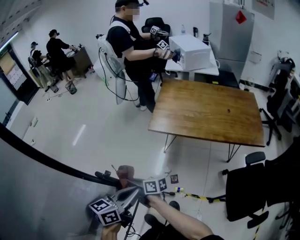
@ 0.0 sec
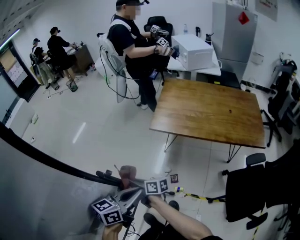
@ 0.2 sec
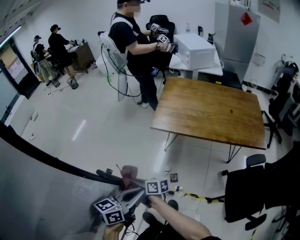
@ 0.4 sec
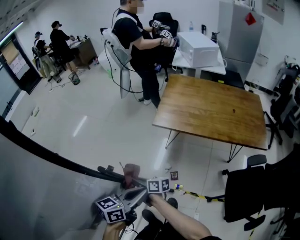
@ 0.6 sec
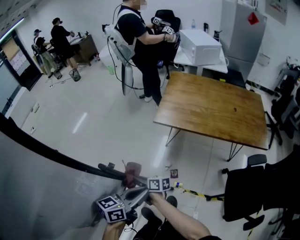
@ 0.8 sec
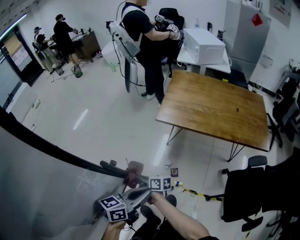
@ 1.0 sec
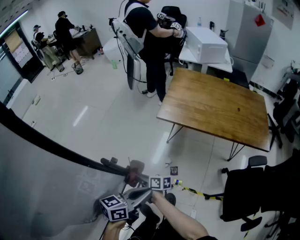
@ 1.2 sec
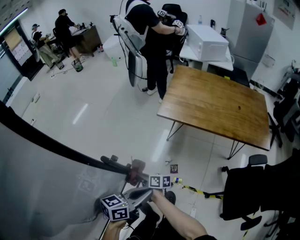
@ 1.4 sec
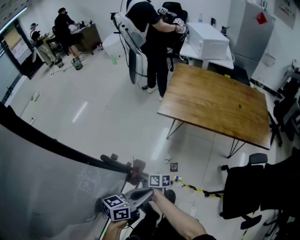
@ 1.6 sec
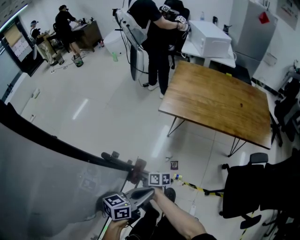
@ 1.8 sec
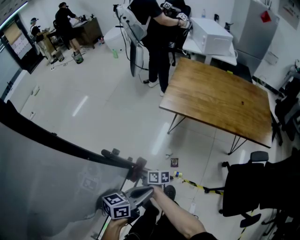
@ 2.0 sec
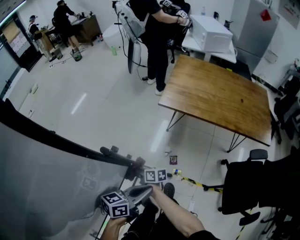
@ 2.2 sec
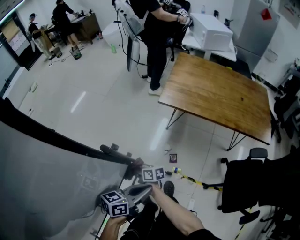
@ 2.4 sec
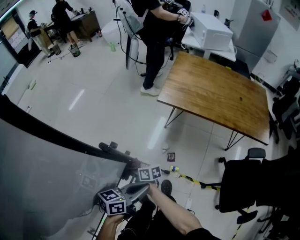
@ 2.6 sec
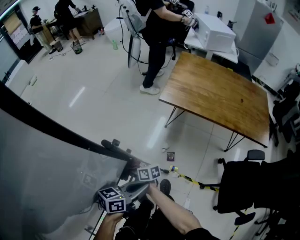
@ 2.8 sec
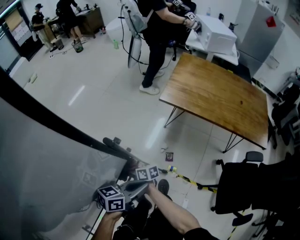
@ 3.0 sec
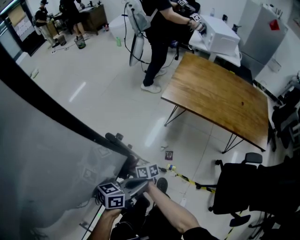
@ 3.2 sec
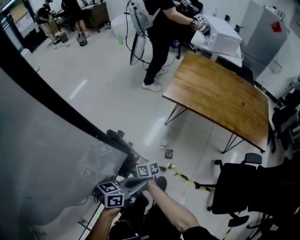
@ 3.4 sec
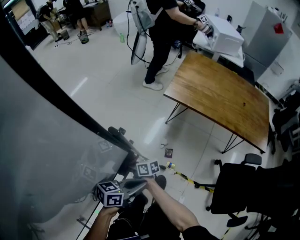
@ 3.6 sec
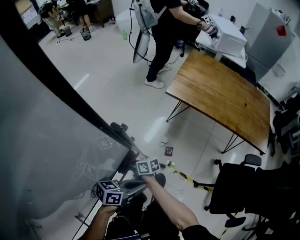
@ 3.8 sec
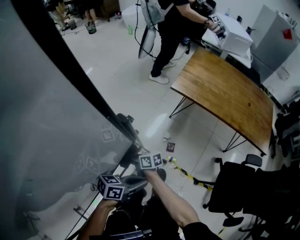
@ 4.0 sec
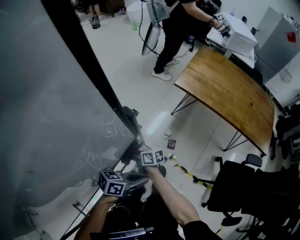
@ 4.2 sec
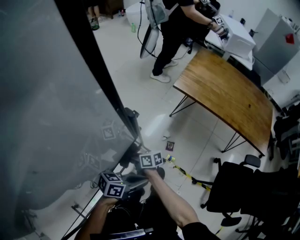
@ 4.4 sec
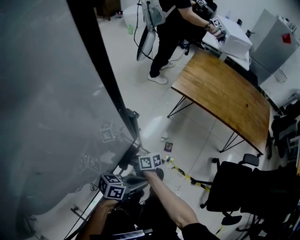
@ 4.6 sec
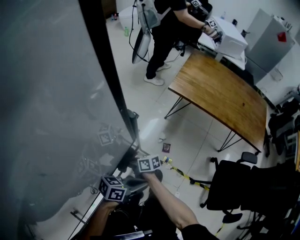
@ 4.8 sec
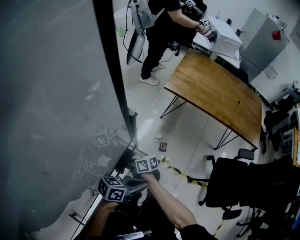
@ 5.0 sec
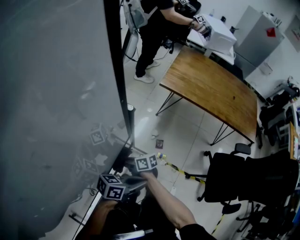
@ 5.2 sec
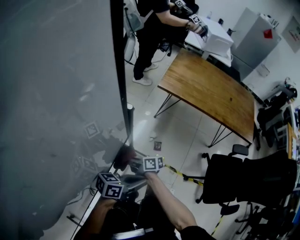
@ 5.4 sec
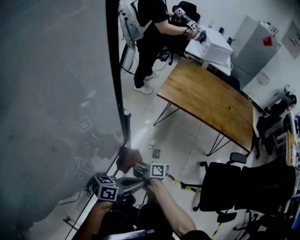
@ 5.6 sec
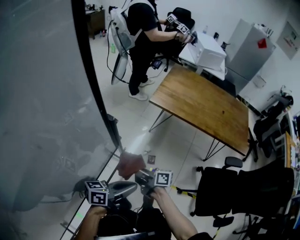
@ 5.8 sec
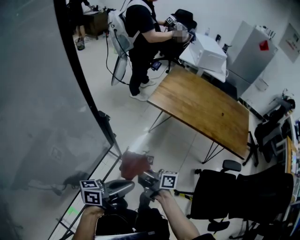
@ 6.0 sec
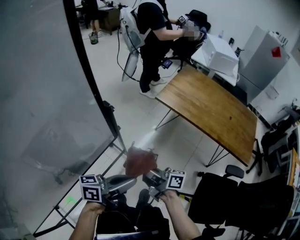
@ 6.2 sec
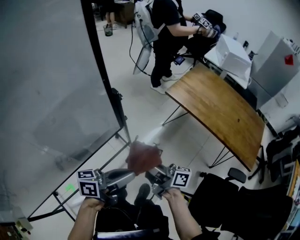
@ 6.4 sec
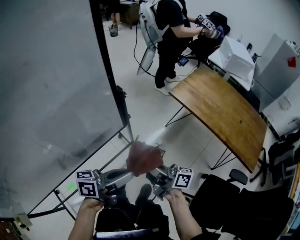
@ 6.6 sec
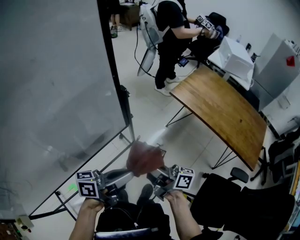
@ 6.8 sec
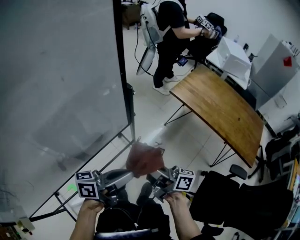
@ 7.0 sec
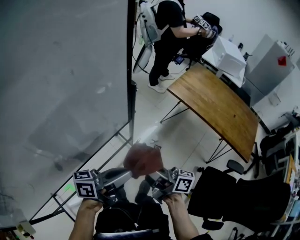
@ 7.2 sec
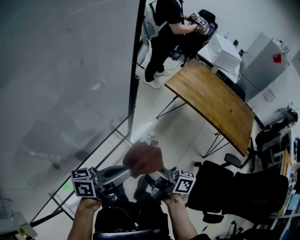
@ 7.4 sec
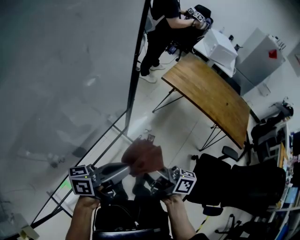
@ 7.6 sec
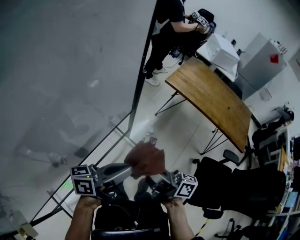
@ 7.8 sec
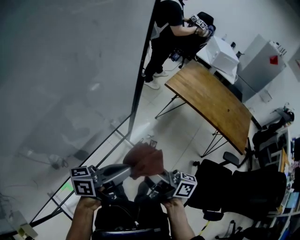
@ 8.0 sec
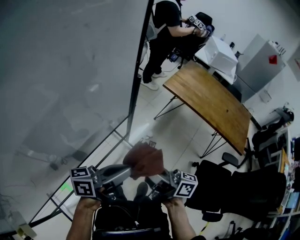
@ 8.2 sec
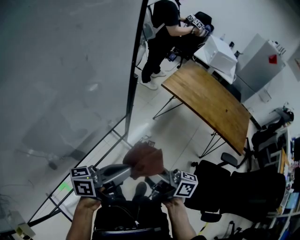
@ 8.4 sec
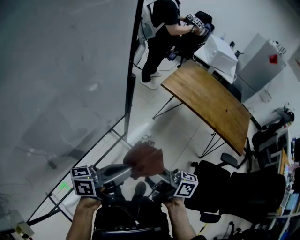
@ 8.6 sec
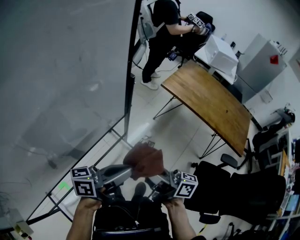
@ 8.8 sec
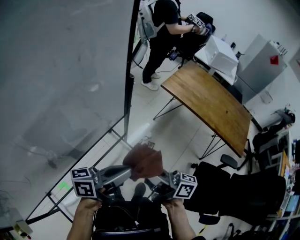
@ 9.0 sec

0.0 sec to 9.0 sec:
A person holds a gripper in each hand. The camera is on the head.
0.0 sec to 1.6 sec: The left gripper goes some 10 cm downward, while the right gripper moves downward, some 15 cm.
1.6 sec to 3.0 sec: The right gripper changes place by roughly 10 cm.
3.0 sec to 4.4 sec: The left gripper changes place by some 10 cm. The right gripper ends up approximately 5 cm from where it was.
4.4 sec to 6.0 sec: The right gripper ends up approximately 30 cm from where it was, and swivels roughly 30 degrees, while the left gripper shifts roughly 10 cm upward, and turns by about 20 degrees.
6.0 sec to 7.6 sec: The right gripper is displaced backward and upward by about 20 cm. Meanwhile the left gripper goes some 15 cm backward, to the left and upward.
7.6 sec to 9.0 sec: The grippers make only small movements.

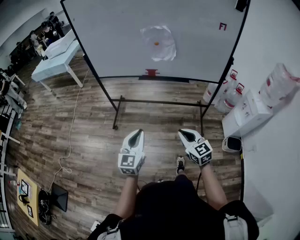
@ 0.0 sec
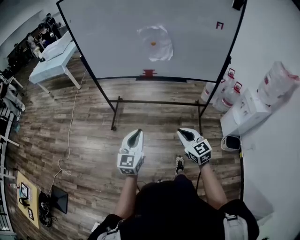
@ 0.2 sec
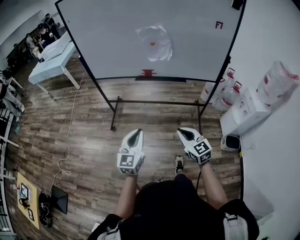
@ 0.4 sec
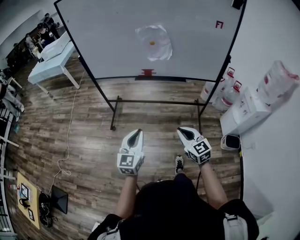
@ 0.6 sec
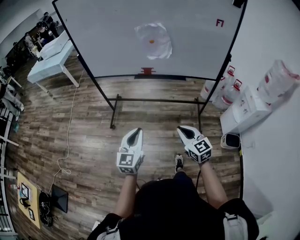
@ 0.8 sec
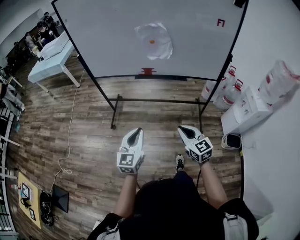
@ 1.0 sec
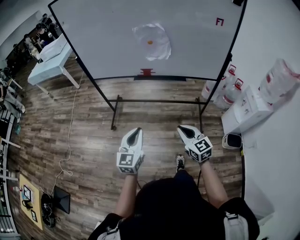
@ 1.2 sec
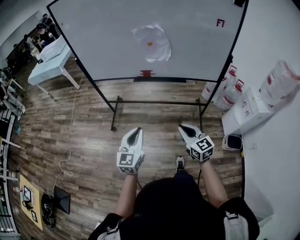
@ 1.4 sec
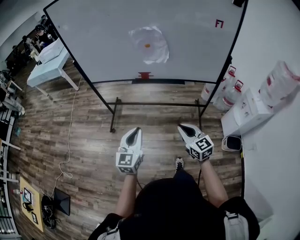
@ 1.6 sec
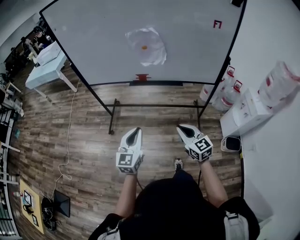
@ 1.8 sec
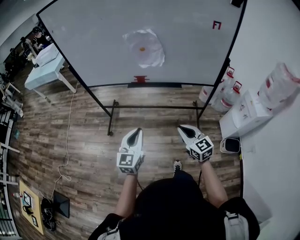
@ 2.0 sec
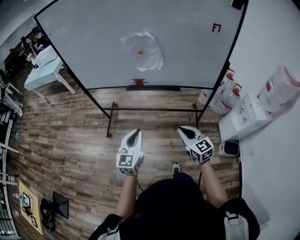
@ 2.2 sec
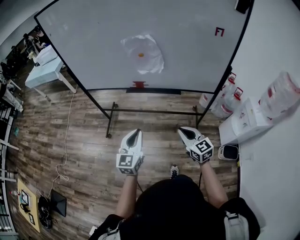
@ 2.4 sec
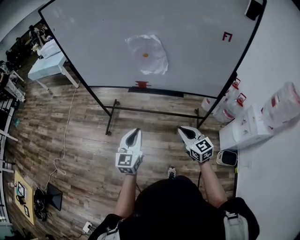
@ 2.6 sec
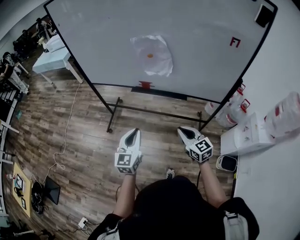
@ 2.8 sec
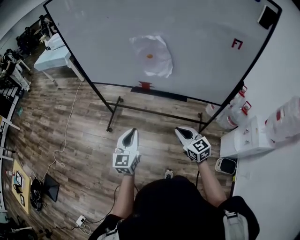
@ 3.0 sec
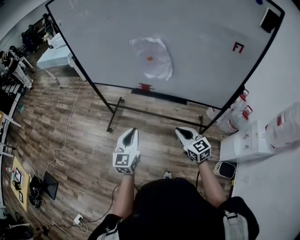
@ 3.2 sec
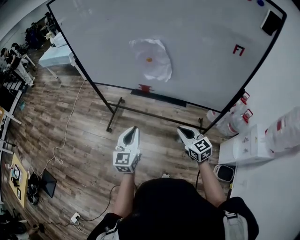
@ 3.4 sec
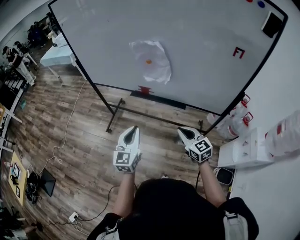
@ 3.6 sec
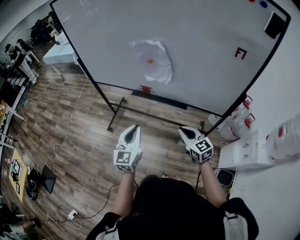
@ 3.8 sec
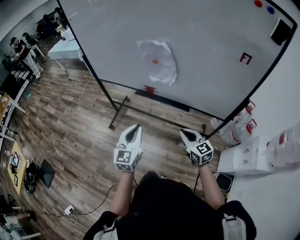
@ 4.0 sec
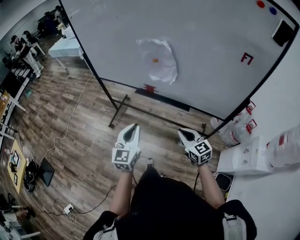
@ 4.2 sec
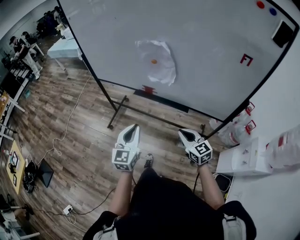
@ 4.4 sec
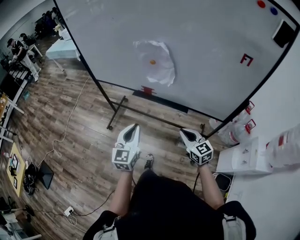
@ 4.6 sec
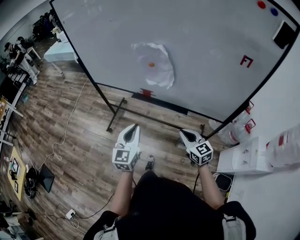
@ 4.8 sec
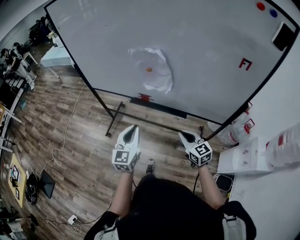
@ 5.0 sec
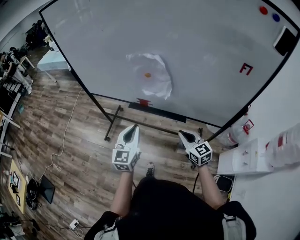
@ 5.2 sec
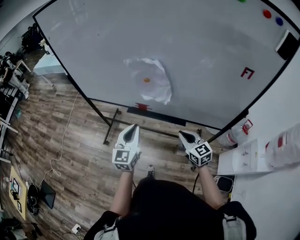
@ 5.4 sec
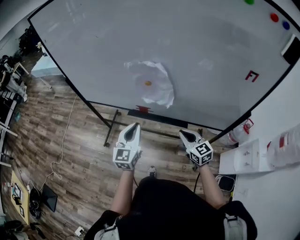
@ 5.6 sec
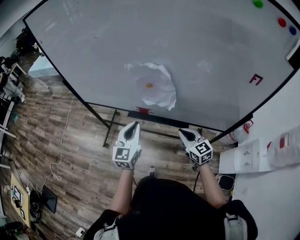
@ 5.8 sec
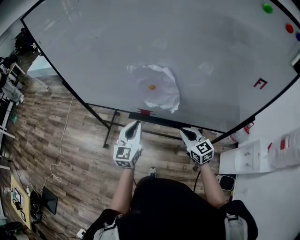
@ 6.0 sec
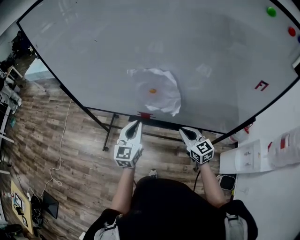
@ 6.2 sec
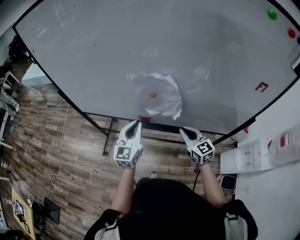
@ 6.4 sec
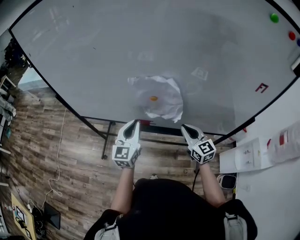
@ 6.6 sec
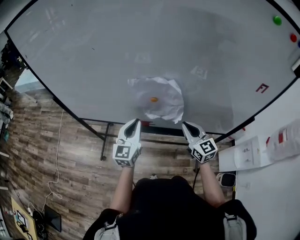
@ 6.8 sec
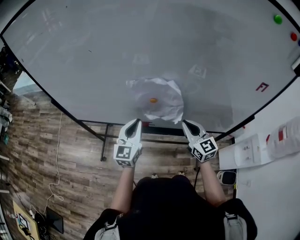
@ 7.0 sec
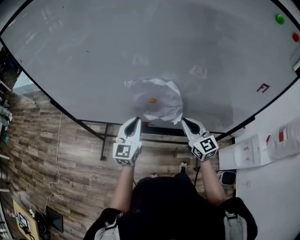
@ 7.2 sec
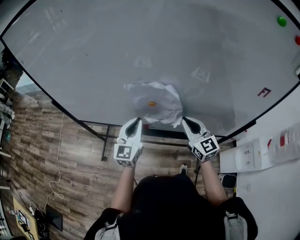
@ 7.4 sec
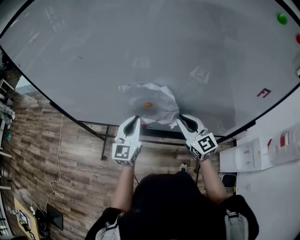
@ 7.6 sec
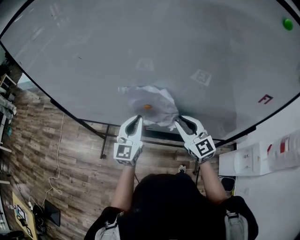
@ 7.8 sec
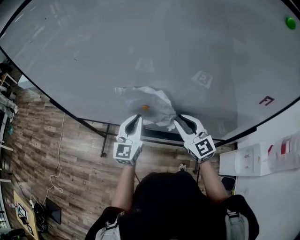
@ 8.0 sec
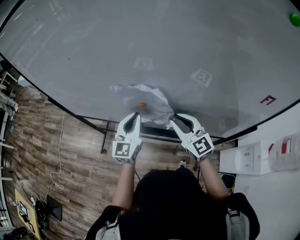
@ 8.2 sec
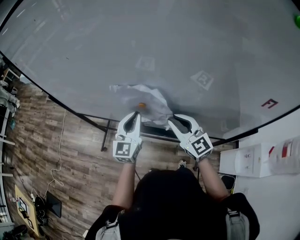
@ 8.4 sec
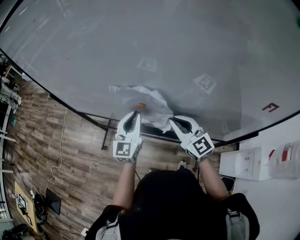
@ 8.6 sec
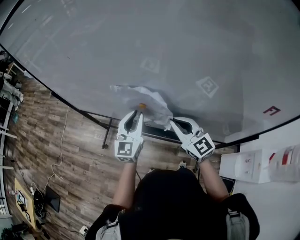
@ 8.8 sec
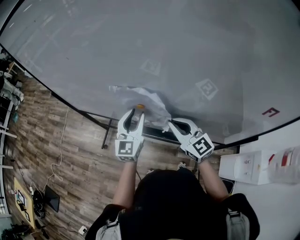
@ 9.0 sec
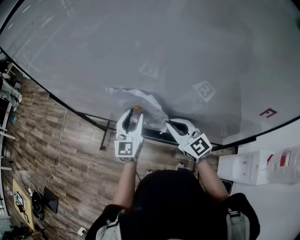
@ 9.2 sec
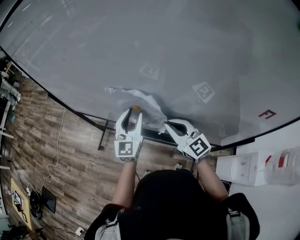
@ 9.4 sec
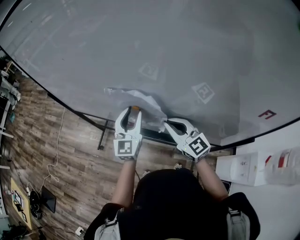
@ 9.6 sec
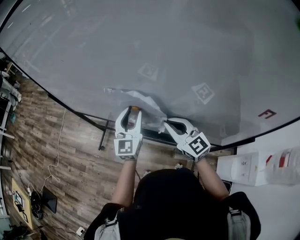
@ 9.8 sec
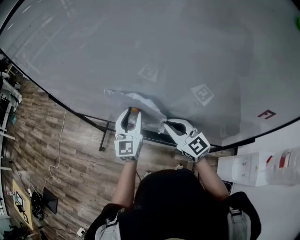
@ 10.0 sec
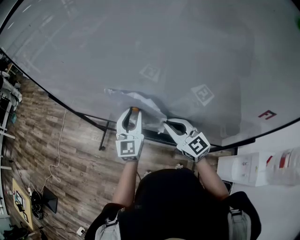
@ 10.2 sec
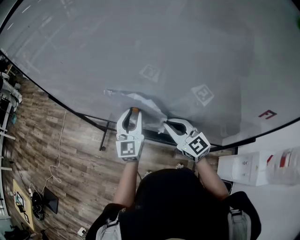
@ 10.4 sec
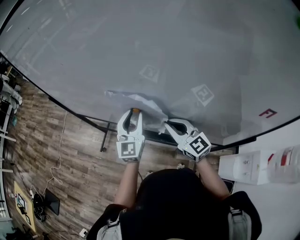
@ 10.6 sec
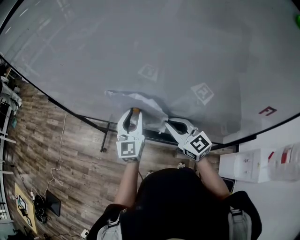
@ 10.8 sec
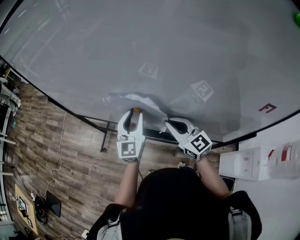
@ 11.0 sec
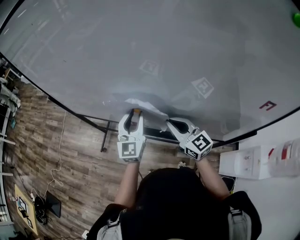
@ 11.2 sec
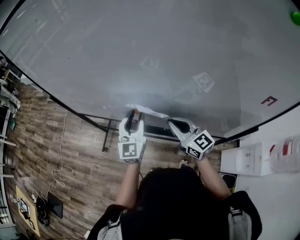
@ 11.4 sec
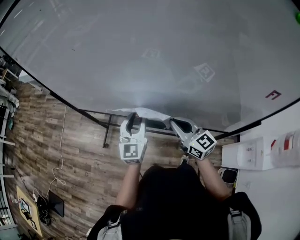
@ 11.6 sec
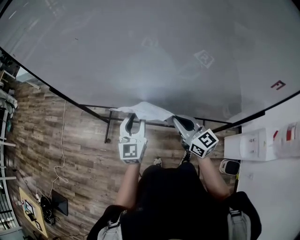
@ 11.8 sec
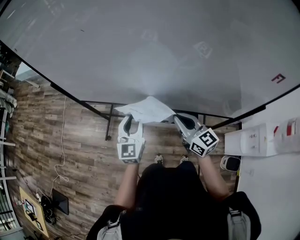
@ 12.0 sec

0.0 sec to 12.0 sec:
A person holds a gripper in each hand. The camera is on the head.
0.0 sec to 1.6 sec: The right gripper heads forward and to the right, covering some 10 cm; the left gripper travels forward by some 10 cm.
1.6 sec to 3.0 sec: The grippers both shift forward and to the right by roughly 15 cm.
3.0 sec to 4.4 sec: Both grippers travel together to the right, some 5 cm.
4.4 sec to 6.0 sec: The grippers both shift forward by about 20 cm.
6.0 sec to 7.6 sec: The right gripper moves forward and upward, some 15 cm, while the left gripper shifts roughly 10 cm forward.
7.6 sec to 9.0 sec: The left gripper ends up roughly 5 cm from where it was, and opens its fingers.
9.0 sec to 10.4 sec: The grippers stay close to where they were, moving slightly.
10.4 sec to 12.0 sec: The left gripper travels to the left, backward and downward by approximately 15 cm. Meanwhile the right gripper travels to the left and backward by about 10 cm, and rotates some 20 degrees.

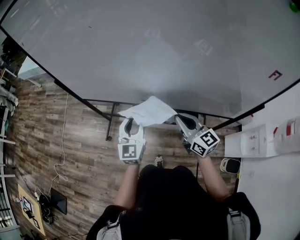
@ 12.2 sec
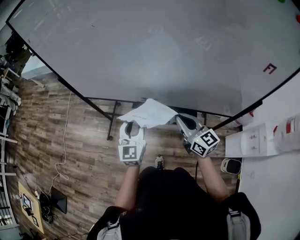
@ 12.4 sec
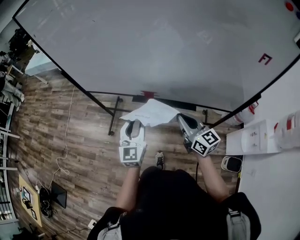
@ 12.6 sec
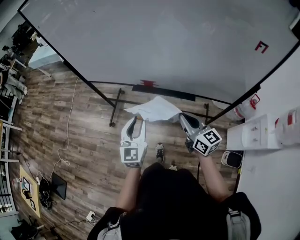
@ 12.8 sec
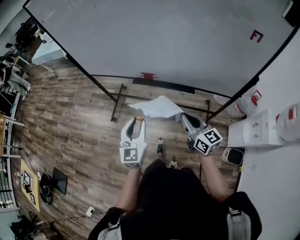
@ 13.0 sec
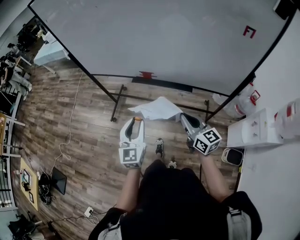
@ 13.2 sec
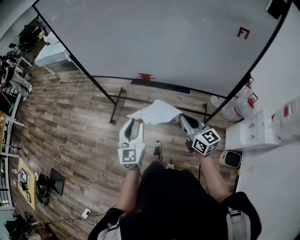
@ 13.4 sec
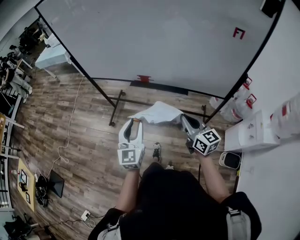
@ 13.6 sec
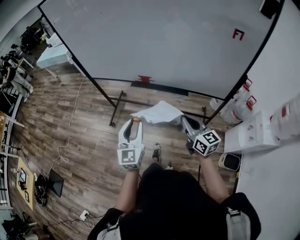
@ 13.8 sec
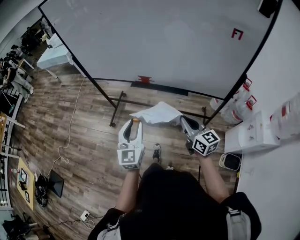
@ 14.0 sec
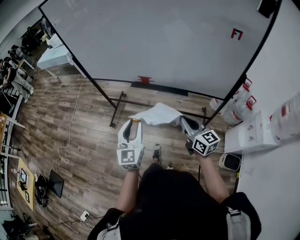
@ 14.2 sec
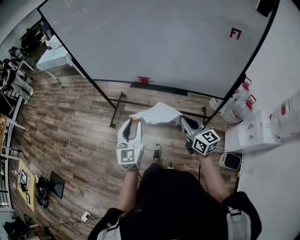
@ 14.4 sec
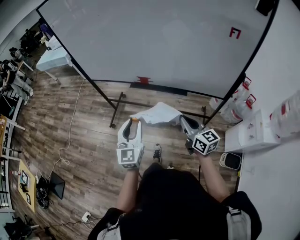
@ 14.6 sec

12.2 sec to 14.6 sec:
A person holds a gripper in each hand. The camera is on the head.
12.2 sec to 13.4 sec: The two grippers go roughly 25 cm backward.
13.4 sec to 14.6 sec: There are only small adjustments of the grippers.
